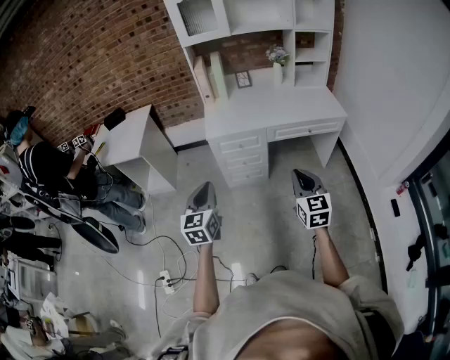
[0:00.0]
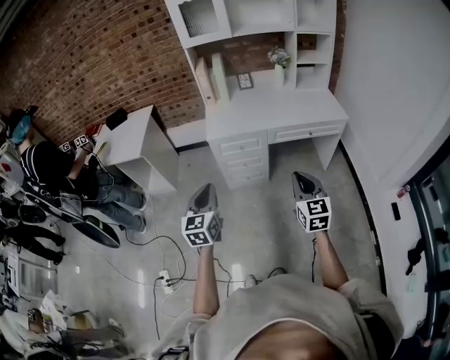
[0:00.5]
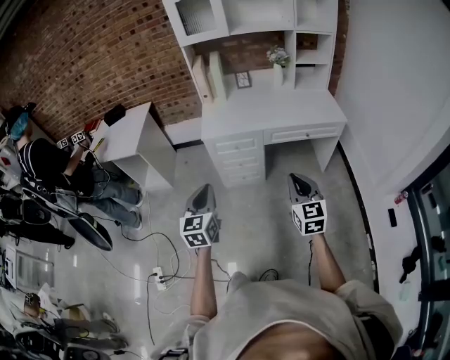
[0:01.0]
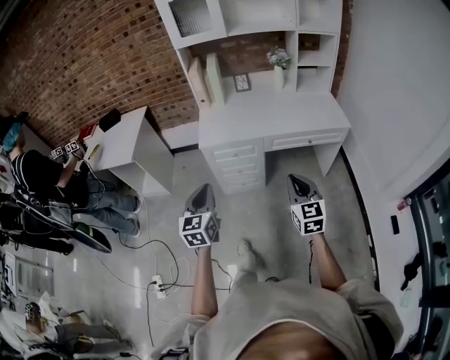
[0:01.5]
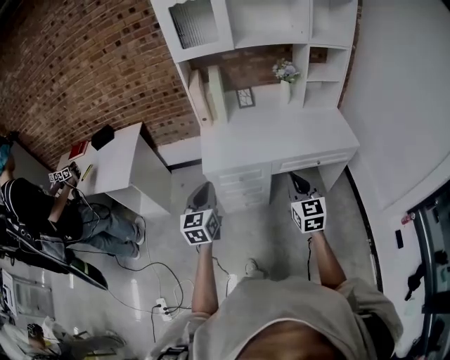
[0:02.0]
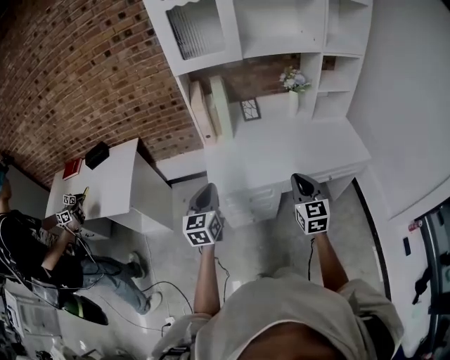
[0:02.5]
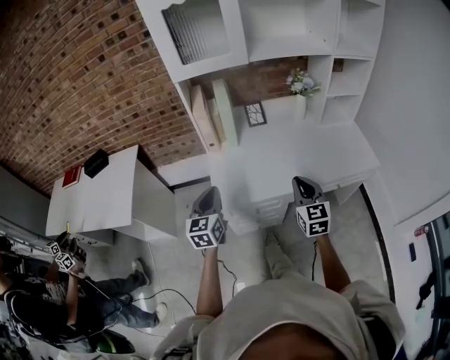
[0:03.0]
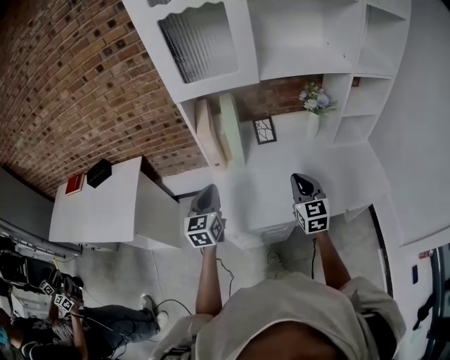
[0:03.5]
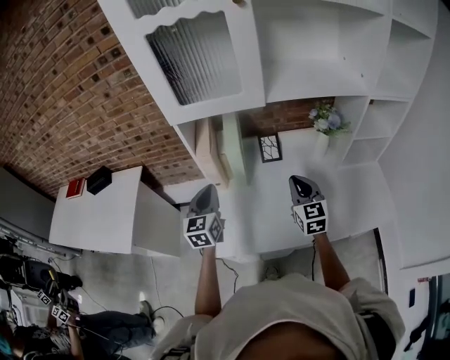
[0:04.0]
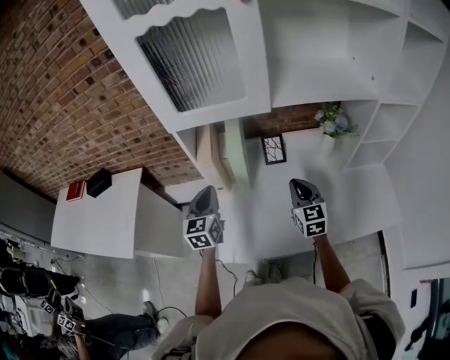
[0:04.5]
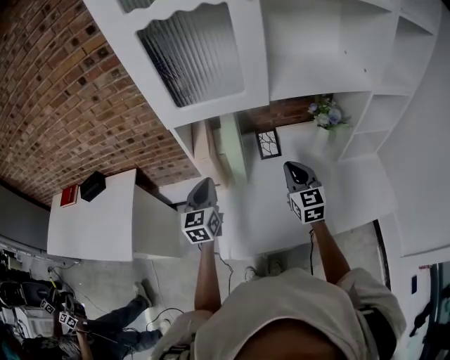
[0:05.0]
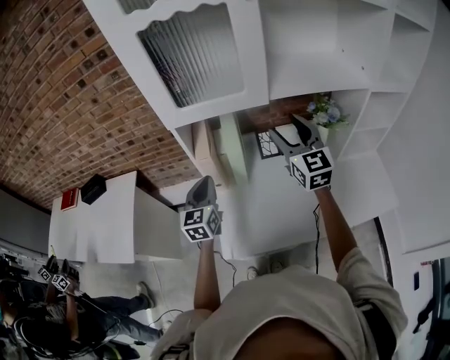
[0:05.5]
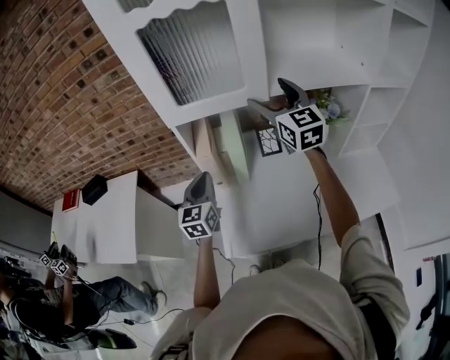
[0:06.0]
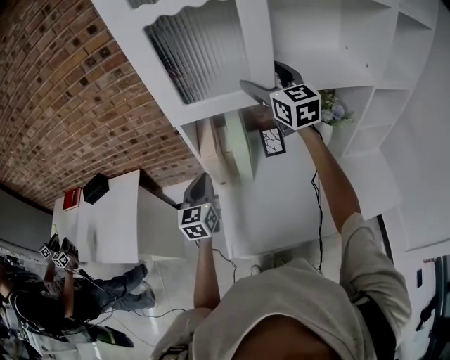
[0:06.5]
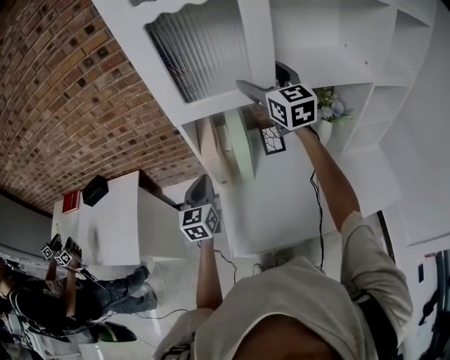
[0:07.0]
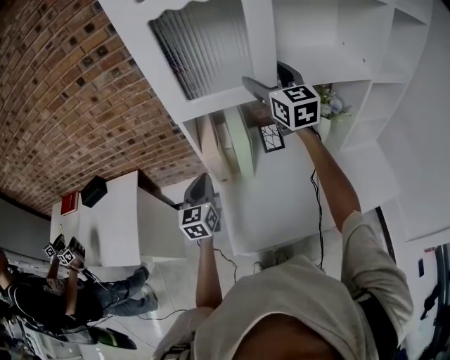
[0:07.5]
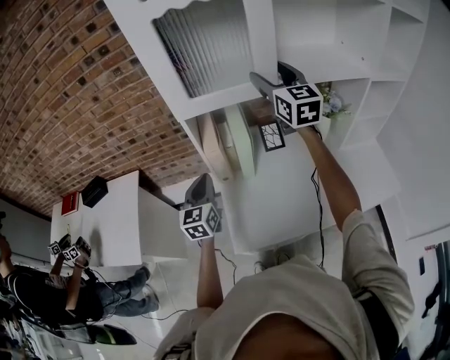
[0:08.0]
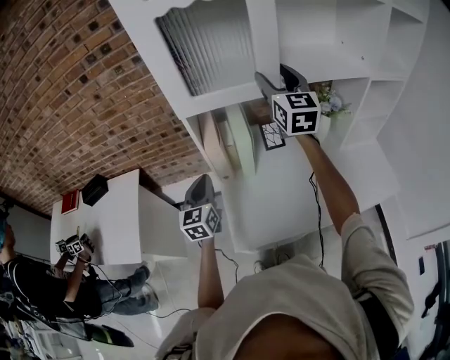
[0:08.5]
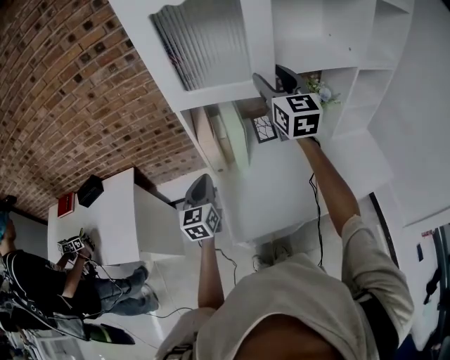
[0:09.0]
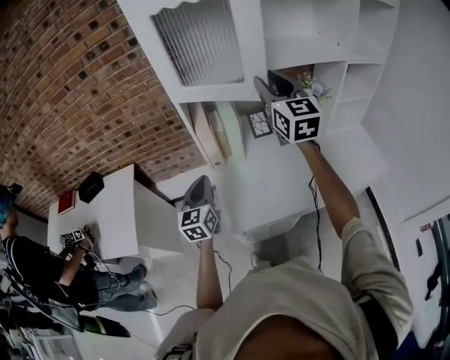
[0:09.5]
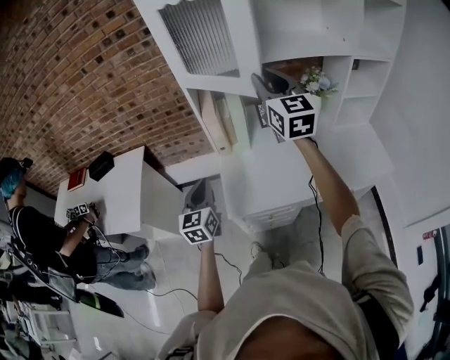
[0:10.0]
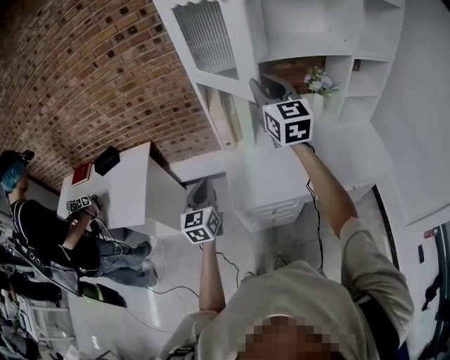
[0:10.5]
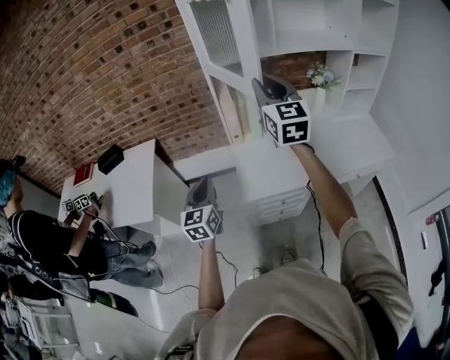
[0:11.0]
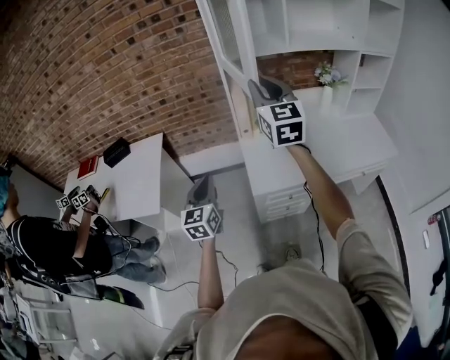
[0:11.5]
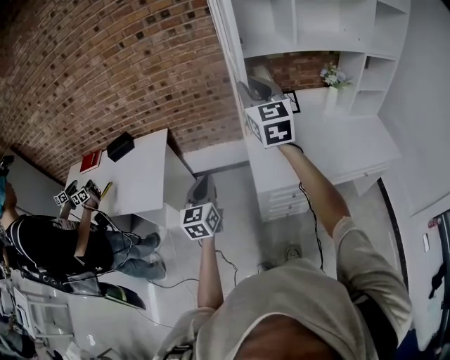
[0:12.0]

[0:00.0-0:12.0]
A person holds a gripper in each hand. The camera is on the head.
0:00.0 to 0:02.0: The two grippers go about 25 cm forward.
0:02.0 to 0:04.0: The pair of grippers is taken forward, some 50 cm.
0:04.0 to 0:06.0: The left gripper heads forward, covering approximately 5 cm, while the right gripper is displaced upward and forward by roughly 25 cm, and opens up.
0:08.0 to 0:10.0: Both grippers travel together backward, some 20 cm. The right gripper closes up.
0:10.0 to 0:12.0: Both grippers travel together to the left and backward, roughly 20 cm.

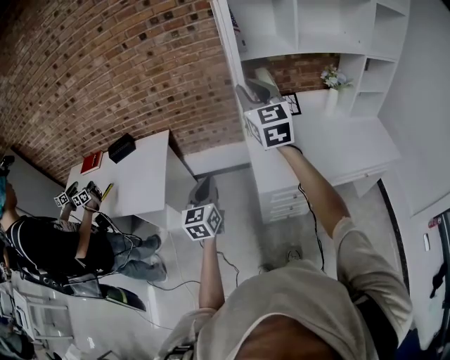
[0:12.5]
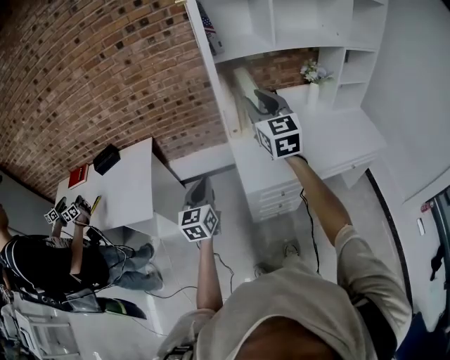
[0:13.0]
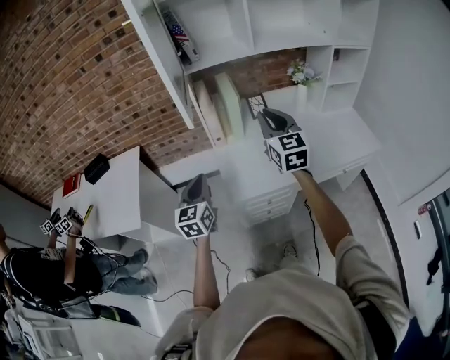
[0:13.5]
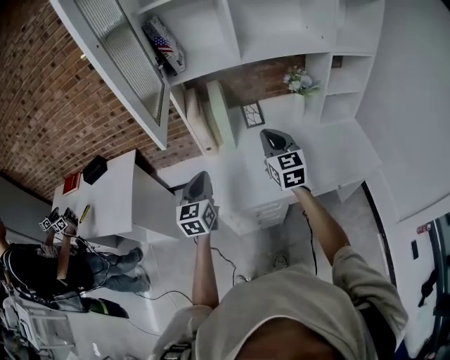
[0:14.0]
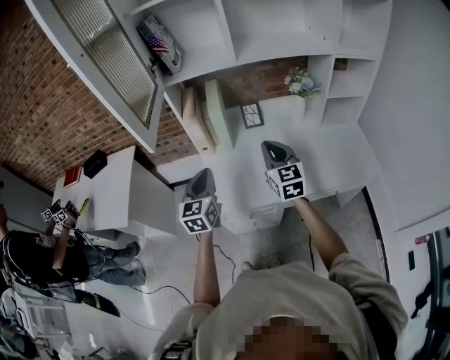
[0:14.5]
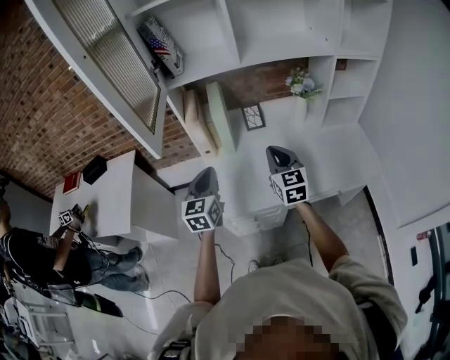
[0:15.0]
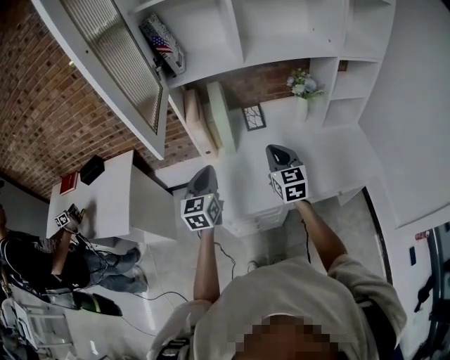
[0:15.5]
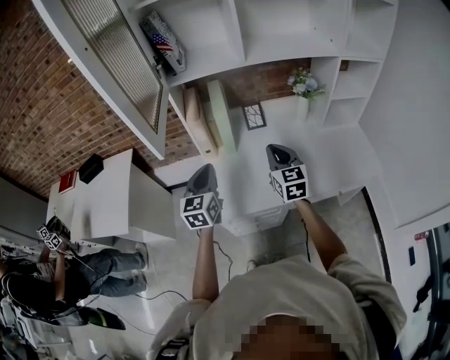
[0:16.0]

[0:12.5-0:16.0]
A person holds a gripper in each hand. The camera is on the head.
0:12.5 to 0:14.5: The right gripper goes about 35 cm to the right and downward; the left gripper travels to the right and forward by about 30 cm.
0:14.5 to 0:16.0: The left gripper moves about 5 cm.

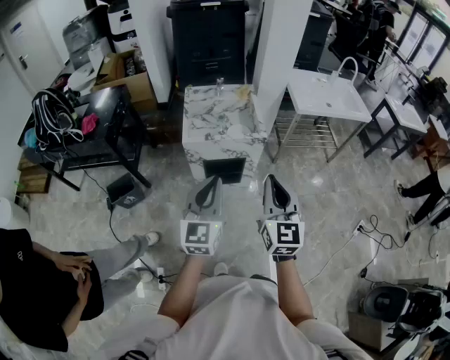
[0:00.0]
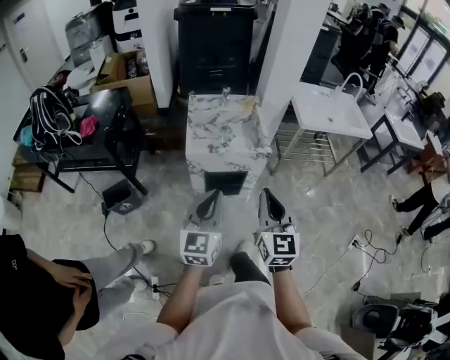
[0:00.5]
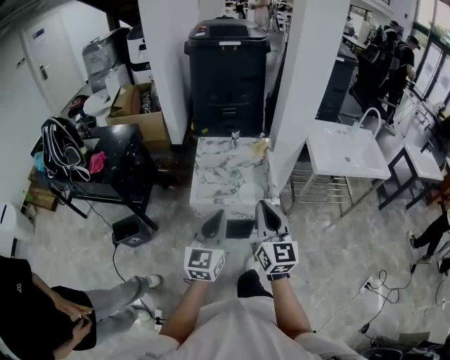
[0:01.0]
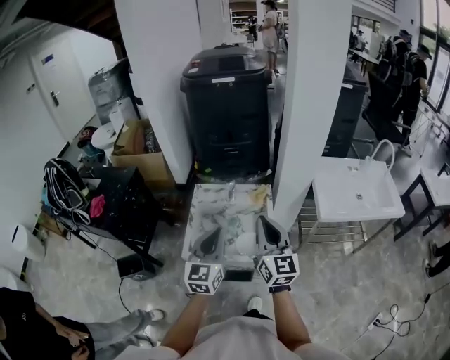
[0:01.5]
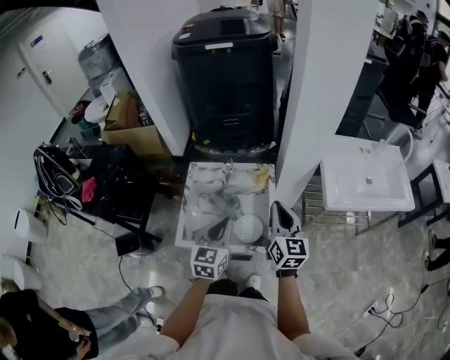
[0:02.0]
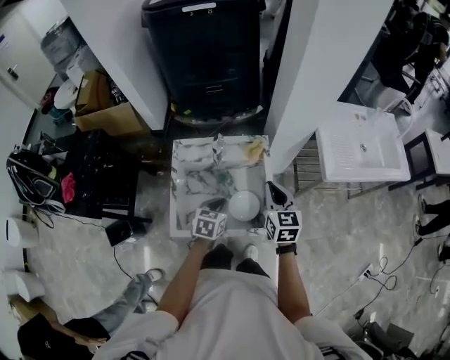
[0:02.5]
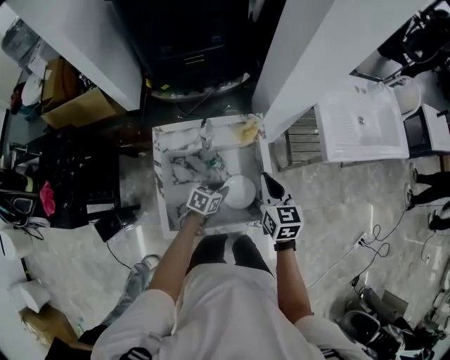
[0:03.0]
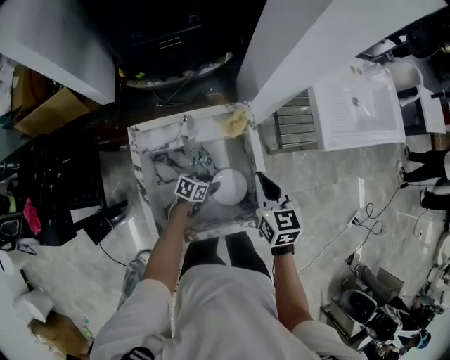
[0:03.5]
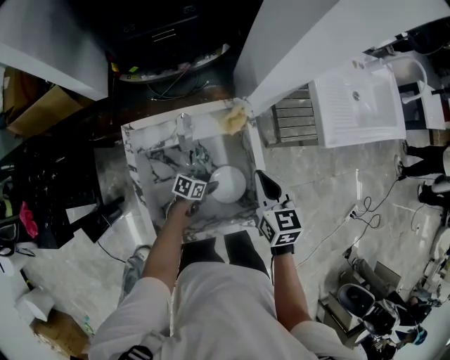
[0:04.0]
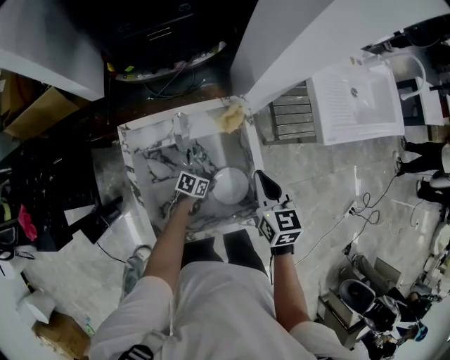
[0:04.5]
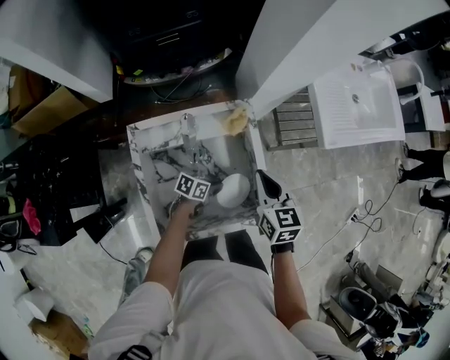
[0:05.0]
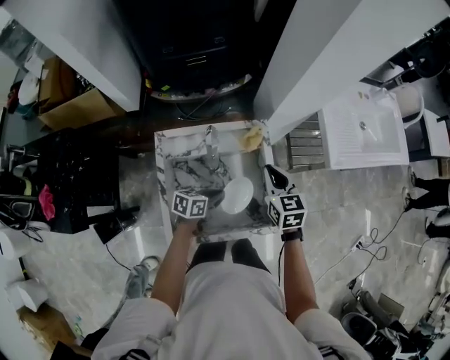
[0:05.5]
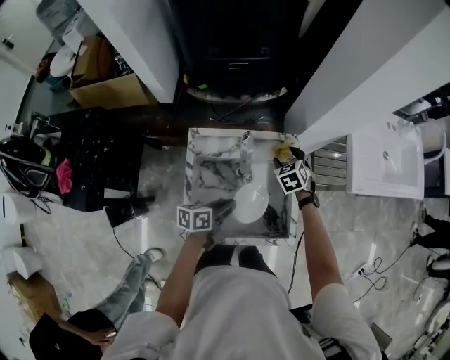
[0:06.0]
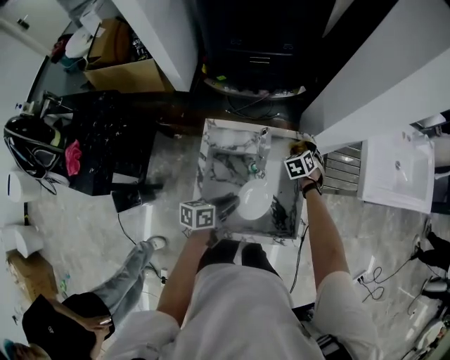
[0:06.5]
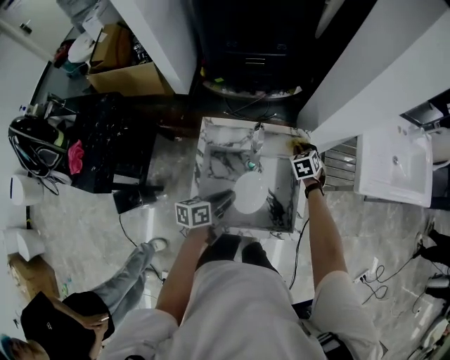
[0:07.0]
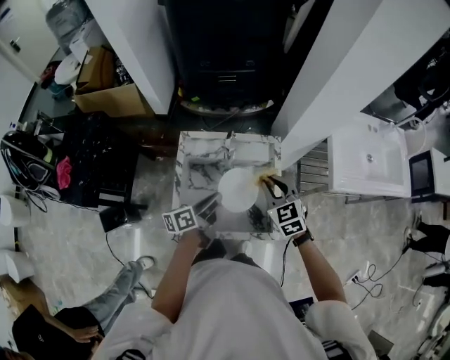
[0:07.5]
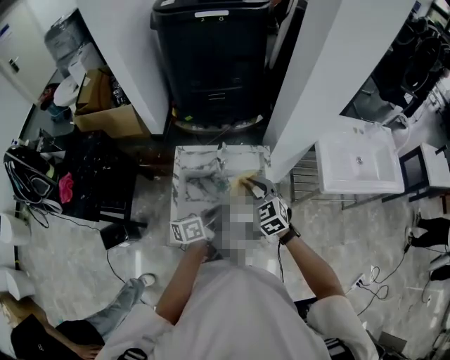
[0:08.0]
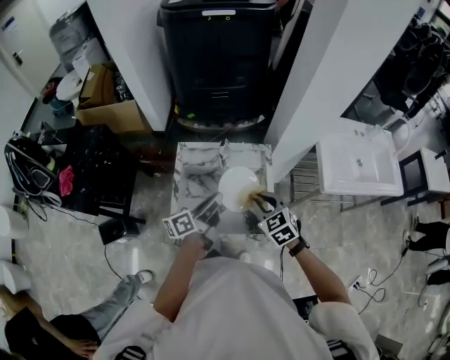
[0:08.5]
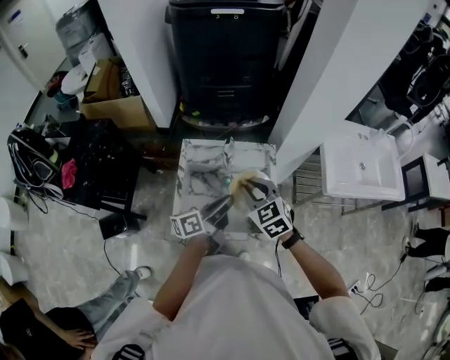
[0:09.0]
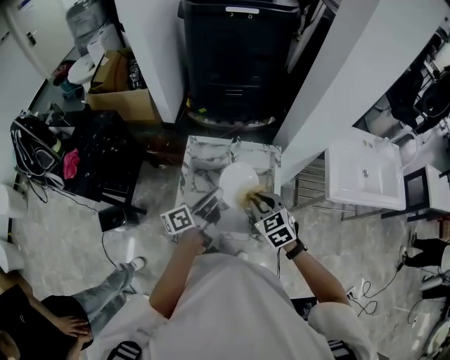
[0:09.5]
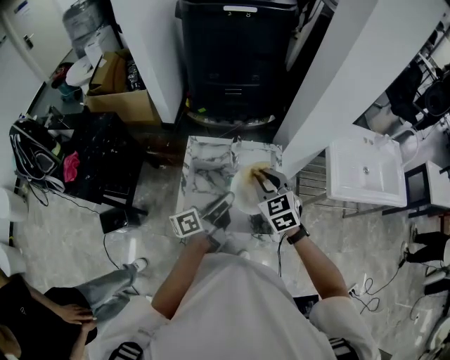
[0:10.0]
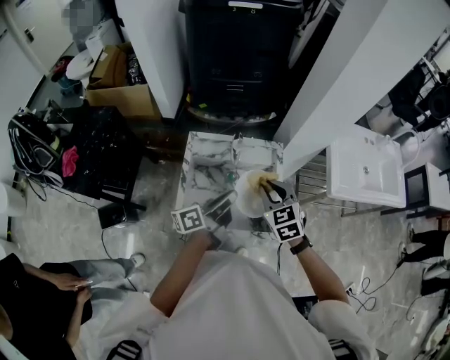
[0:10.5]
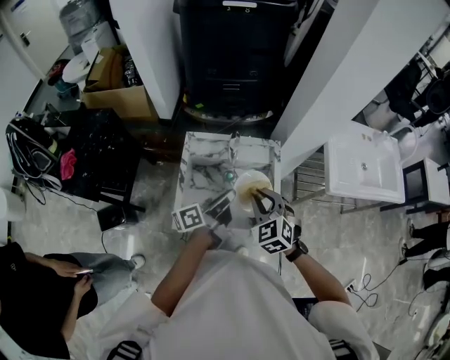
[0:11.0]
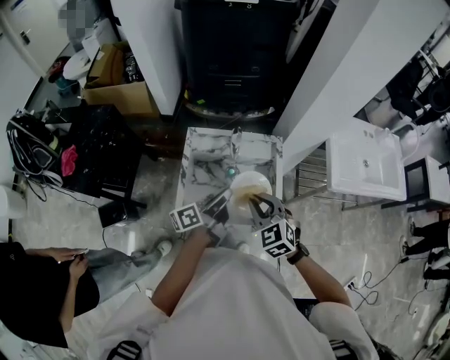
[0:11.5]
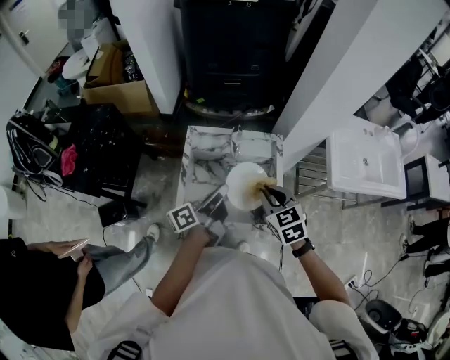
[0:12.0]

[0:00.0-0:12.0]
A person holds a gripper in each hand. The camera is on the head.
0:00.0 to 0:02.0: Both grippers are carried forward, some 50 cm. The right gripper rotates roughly 20 degrees.
0:02.0 to 0:04.0: The left gripper heads downward, covering roughly 40 cm, turns by approximately 70 degrees, and opens its fingers, while the right gripper travels downward by some 15 cm, and rotates approximately 30 degrees.
0:04.0 to 0:06.0: The left gripper moves upward, approximately 20 cm, swivels approximately 40 degrees, and closes its fingers; the right gripper shifts approximately 15 cm to the left, forward and downward, swivels approximately 50 degrees, and opens.
0:06.0 to 0:08.0: The left gripper heads upward and to the right, covering roughly 10 cm, and turns by about 20 degrees; the right gripper goes approximately 25 cm upward and backward, swivels roughly 30 degrees, and closes.
0:08.0 to 0:10.0: The left gripper shifts about 5 cm upward.
0:10.0 to 0:12.0: The right gripper heads backward, covering roughly 5 cm.
